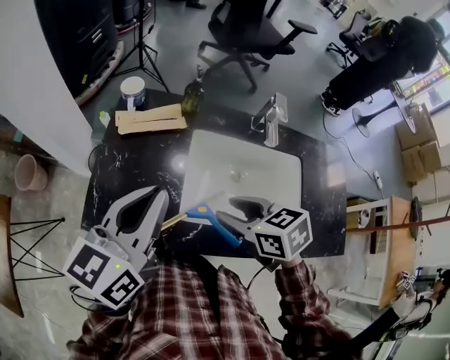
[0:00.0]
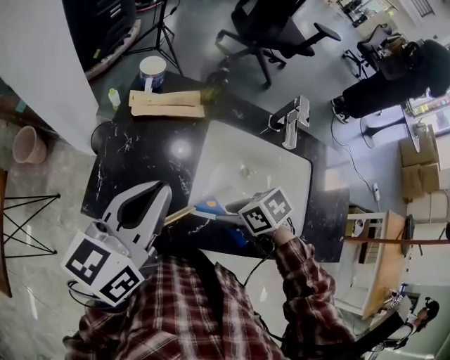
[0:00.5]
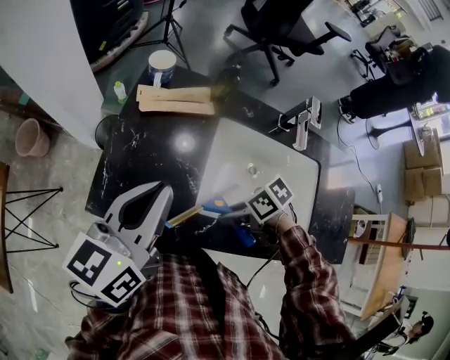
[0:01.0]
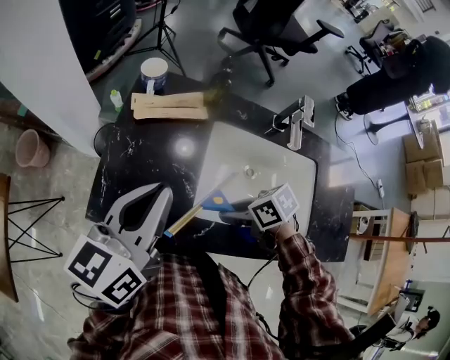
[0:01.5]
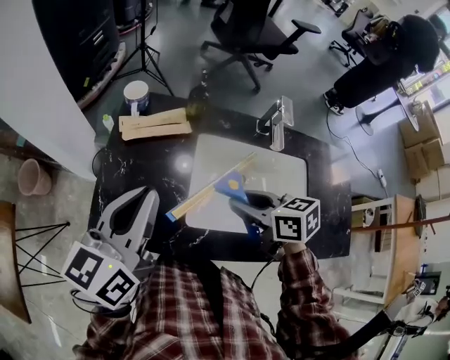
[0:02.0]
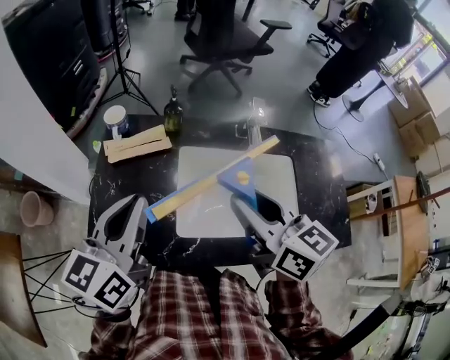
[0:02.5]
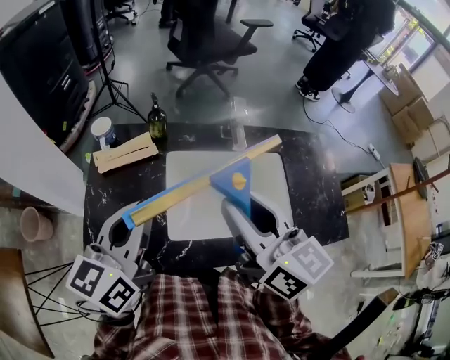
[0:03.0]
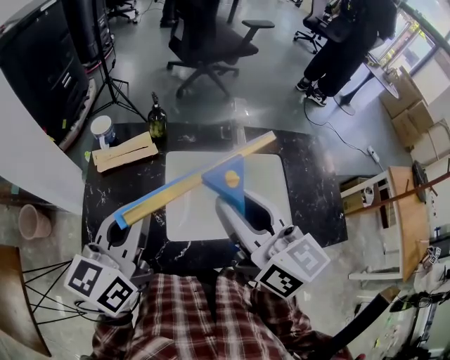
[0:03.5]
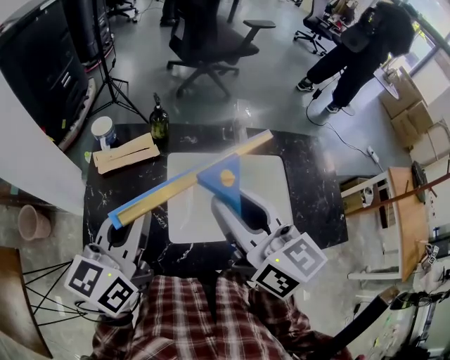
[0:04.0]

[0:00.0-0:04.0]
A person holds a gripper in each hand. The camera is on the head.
0:00.0 to 0:02.0: The right gripper moves approximately 15 cm downward and comes back.
0:02.0 to 0:04.0: The left gripper heads to the right, covering approximately 5 cm. The right gripper goes some 15 cm upward, and tips its fingers upward by roughly 30 degrees.

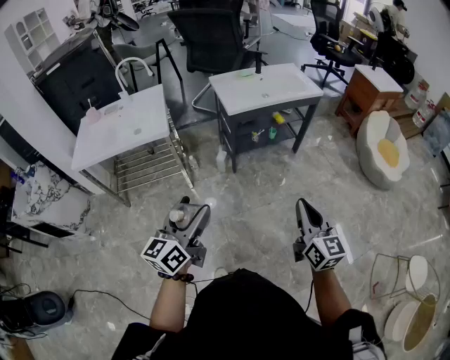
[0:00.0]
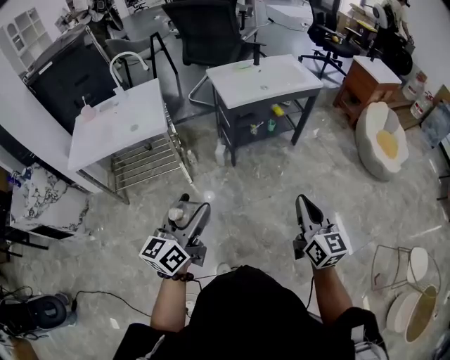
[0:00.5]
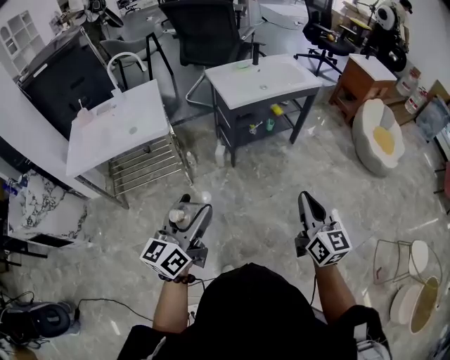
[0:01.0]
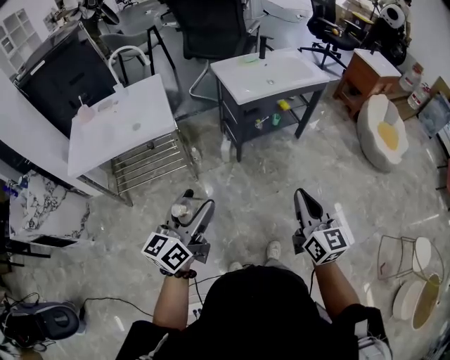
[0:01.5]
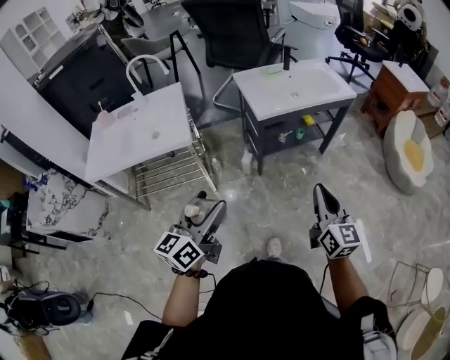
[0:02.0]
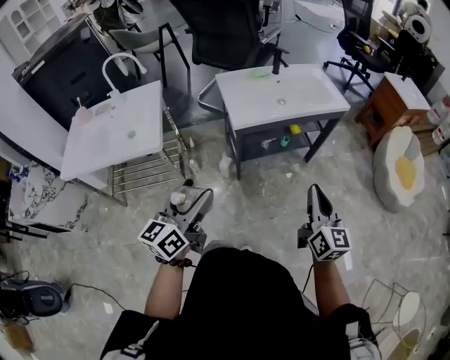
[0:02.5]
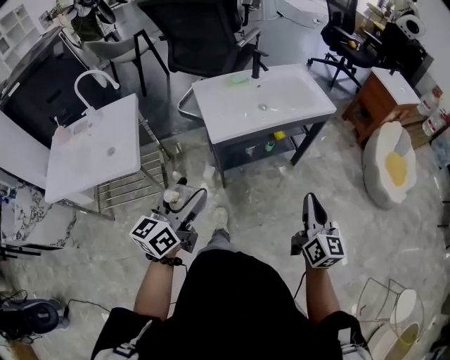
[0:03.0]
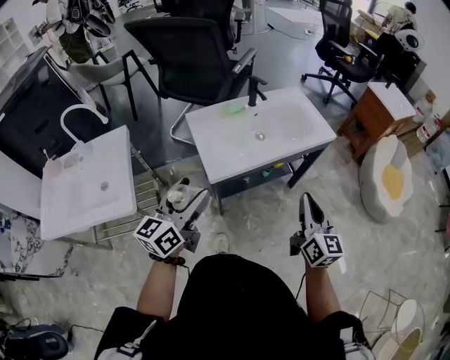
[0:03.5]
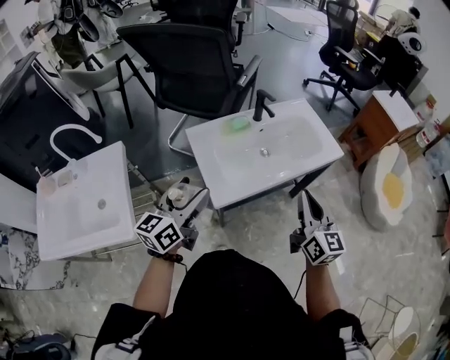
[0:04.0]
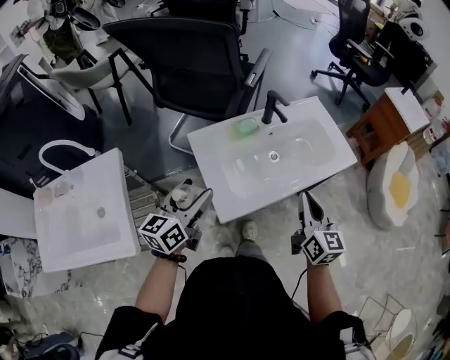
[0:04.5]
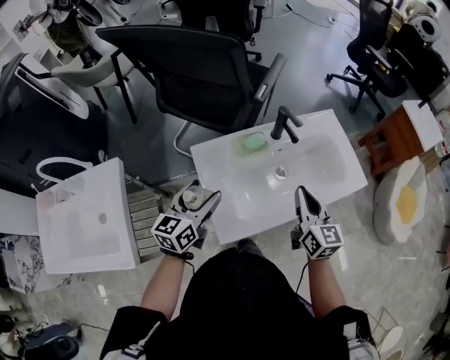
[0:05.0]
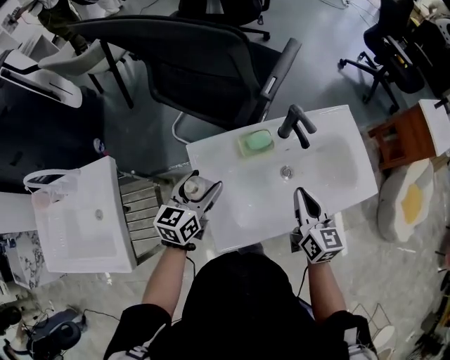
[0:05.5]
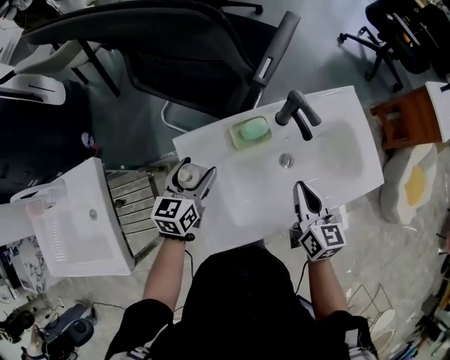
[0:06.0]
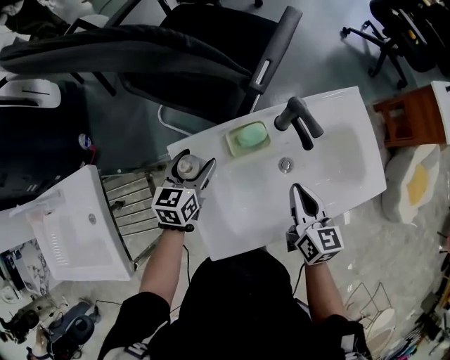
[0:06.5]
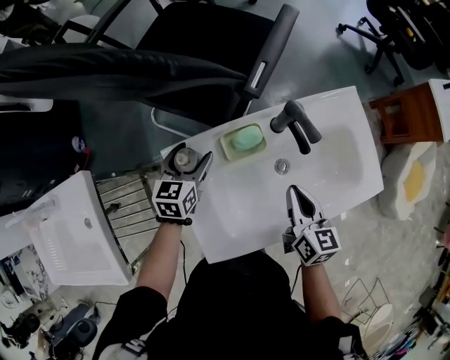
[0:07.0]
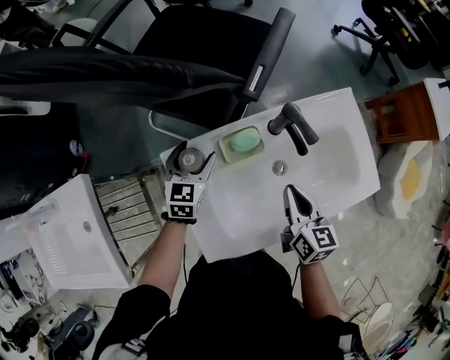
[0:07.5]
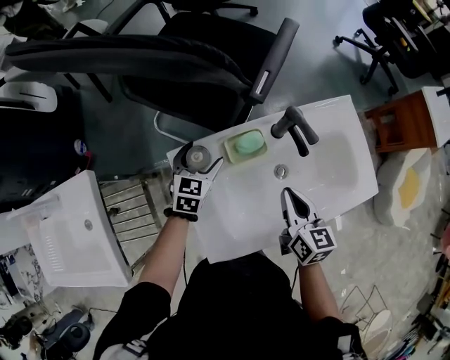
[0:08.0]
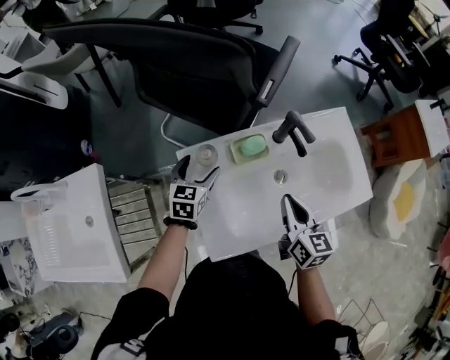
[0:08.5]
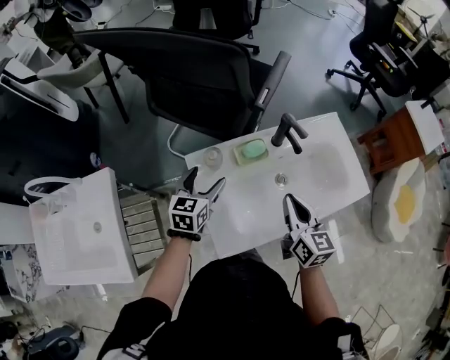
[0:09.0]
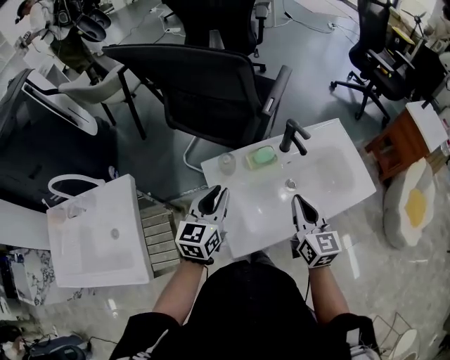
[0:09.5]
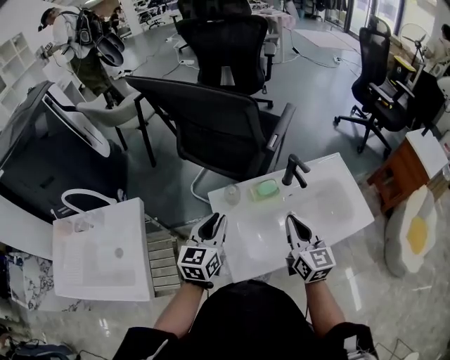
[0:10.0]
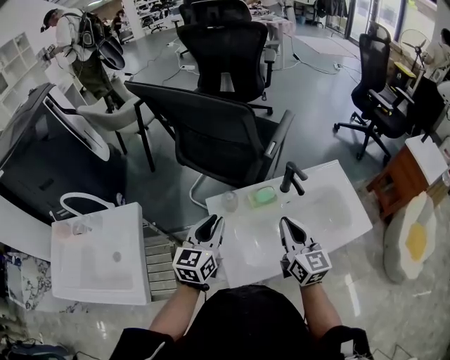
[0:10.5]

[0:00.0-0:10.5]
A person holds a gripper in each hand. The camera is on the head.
0:00.0 to 0:02.0: The two grippers go approximately 15 cm forward and to the left.
0:02.0 to 0:04.0: Both grippers are carried forward, approximately 40 cm.
0:04.0 to 0:06.5: The two grippers go some 35 cm forward and downward. The left gripper swivels approximately 30 degrees, while the right gripper changes its angle by some 30 degrees.
0:06.5 to 0:08.5: The grippers stay close to where they were, moving slightly.
0:08.5 to 0:10.5: The left gripper heads upward and backward, covering approximately 20 cm, swivels roughly 20 degrees, and closes up. The right gripper heads upward, covering roughly 10 cm, and swivels roughly 20 degrees.

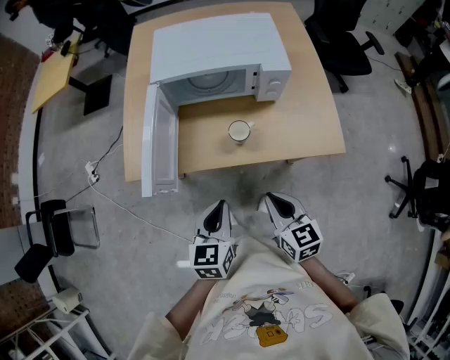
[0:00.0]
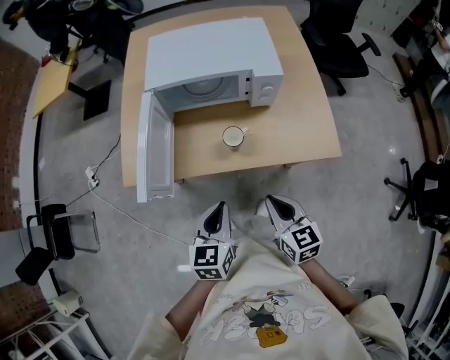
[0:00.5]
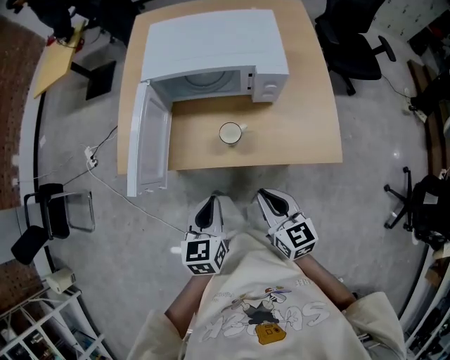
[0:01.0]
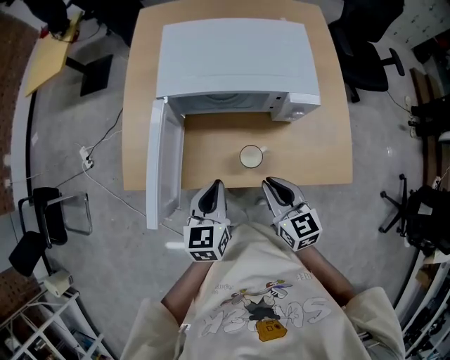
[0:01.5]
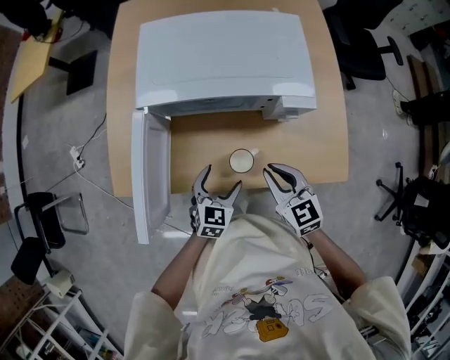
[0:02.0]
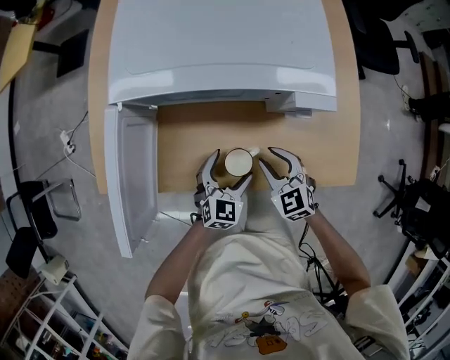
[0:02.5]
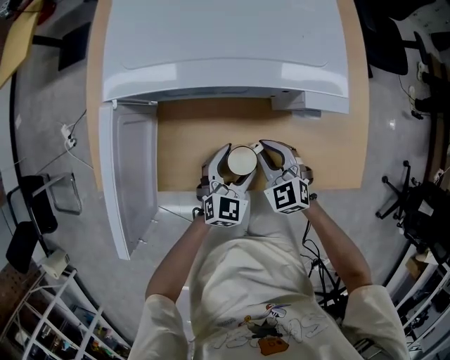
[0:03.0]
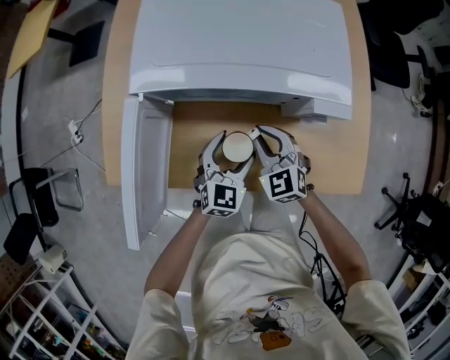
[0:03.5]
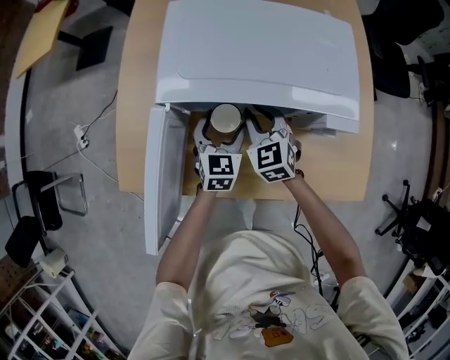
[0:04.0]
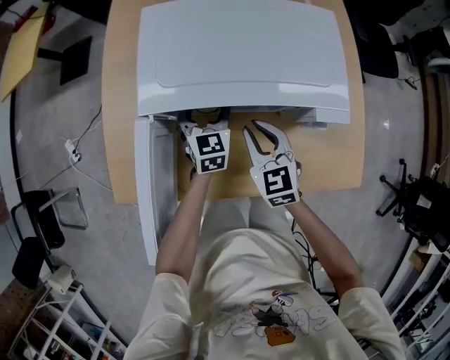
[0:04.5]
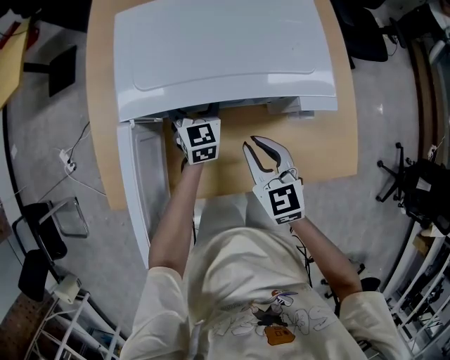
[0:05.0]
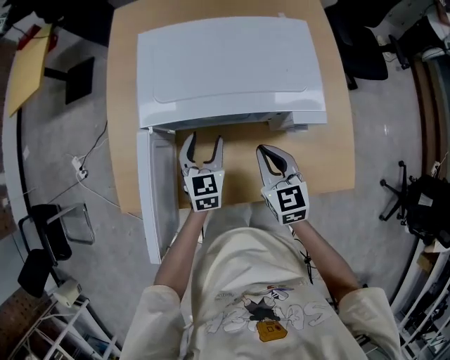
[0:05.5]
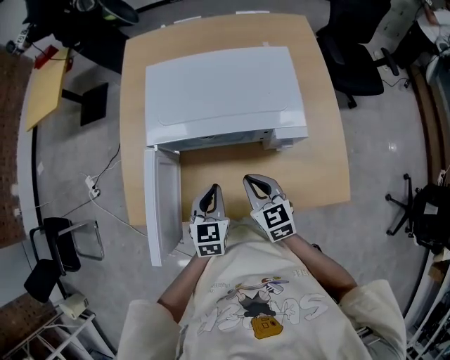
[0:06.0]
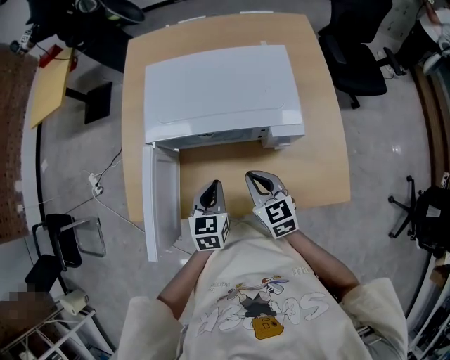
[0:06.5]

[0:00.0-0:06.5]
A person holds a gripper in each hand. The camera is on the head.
0:00.0 to 0:02.0: The right gripper is displaced forward by approximately 20 cm. The left gripper is displaced forward and downward by roughly 25 cm, changes its angle by approximately 20 degrees, and opens.
0:02.0 to 0:04.5: The left gripper goes about 25 cm forward, and changes its angle by some 20 degrees. Meanwhile the right gripper shifts some 15 cm forward and to the left.
0:04.5 to 0:06.5: The right gripper is displaced backward by approximately 10 cm, while the left gripper is displaced backward by some 20 cm, and closes up.

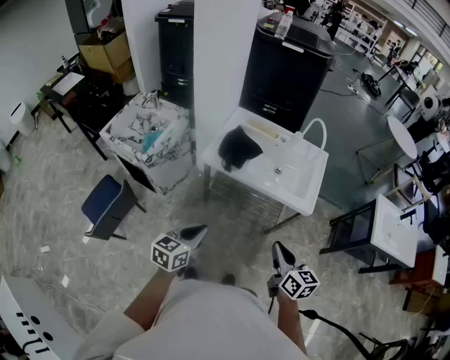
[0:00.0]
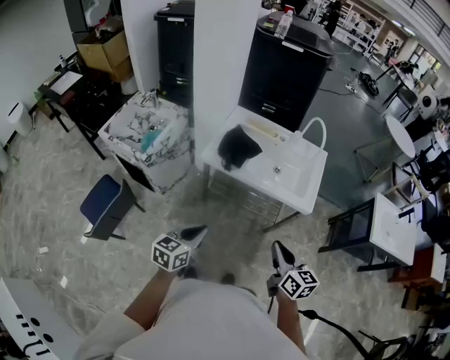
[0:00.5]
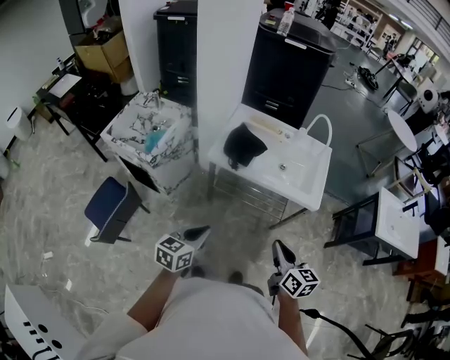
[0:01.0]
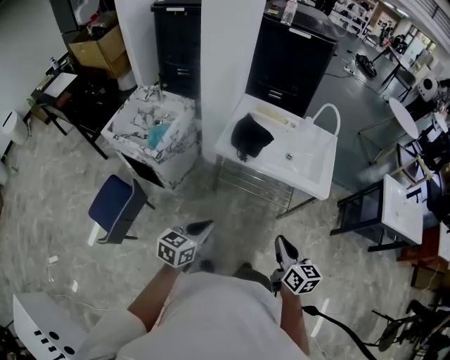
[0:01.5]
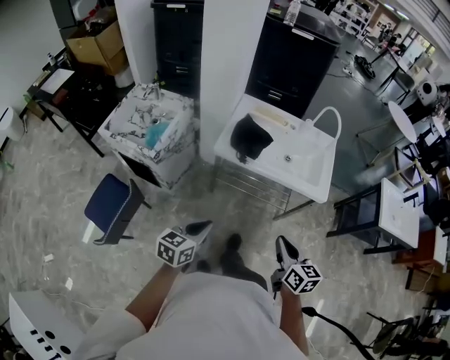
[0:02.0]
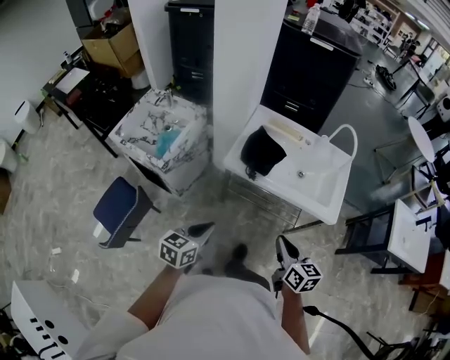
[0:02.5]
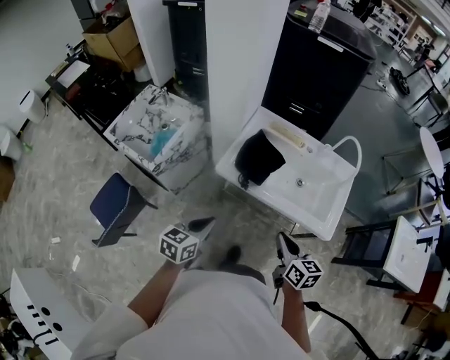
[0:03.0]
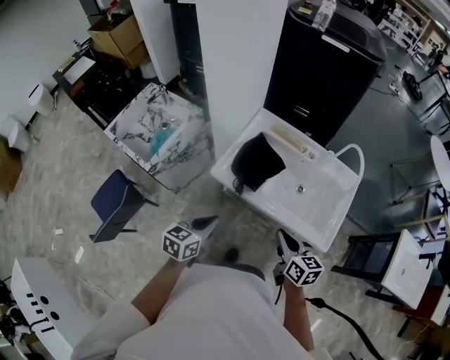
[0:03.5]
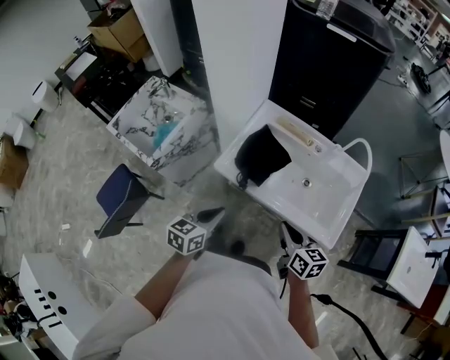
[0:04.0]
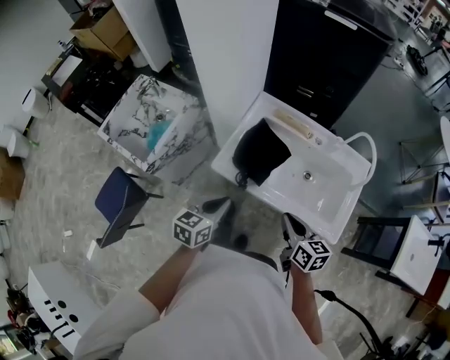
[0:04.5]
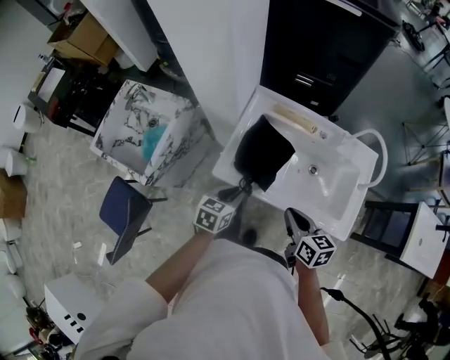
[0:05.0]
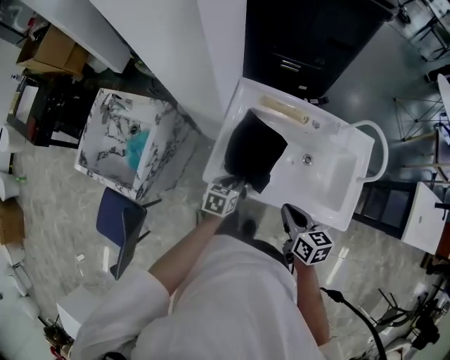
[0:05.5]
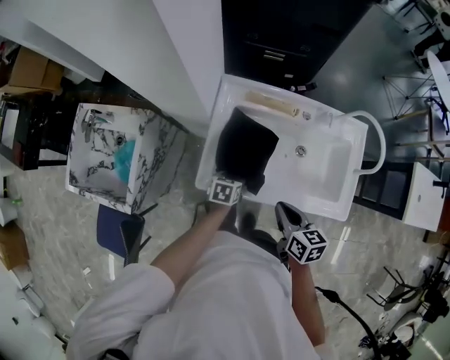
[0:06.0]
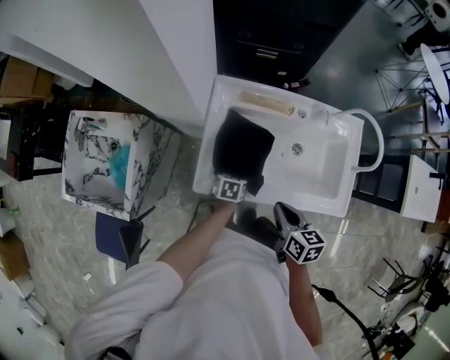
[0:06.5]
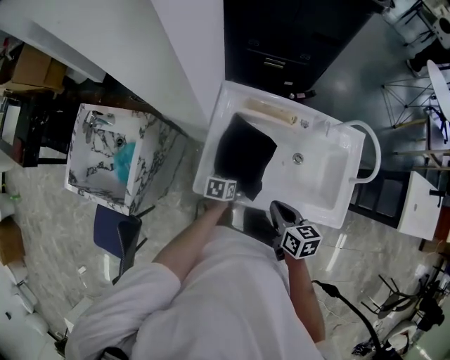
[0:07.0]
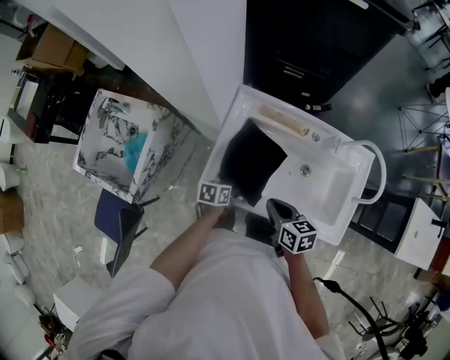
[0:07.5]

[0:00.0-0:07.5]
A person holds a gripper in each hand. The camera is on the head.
0:00.0 to 0:02.0: Both grippers move to the left, about 10 cm.
0:02.0 to 0:04.0: The right gripper moves forward, approximately 30 cm, while the left gripper travels forward and to the right by roughly 30 cm.
0:04.0 to 0:05.5: The right gripper is displaced forward and downward by approximately 15 cm; the left gripper shifts roughly 30 cm forward and downward, and changes its angle by some 20 degrees.
0:05.5 to 0:07.5: The left gripper heads downward, covering about 5 cm, turns by some 20 degrees, and opens its fingers; the right gripper is displaced forward by roughly 5 cm.
